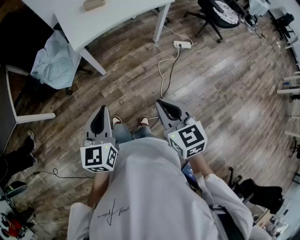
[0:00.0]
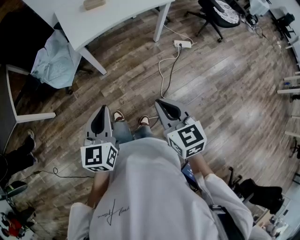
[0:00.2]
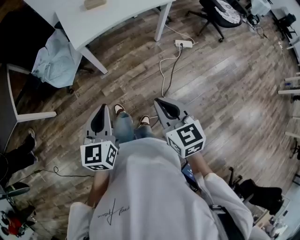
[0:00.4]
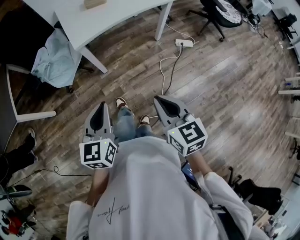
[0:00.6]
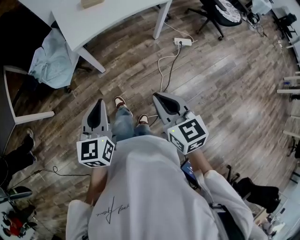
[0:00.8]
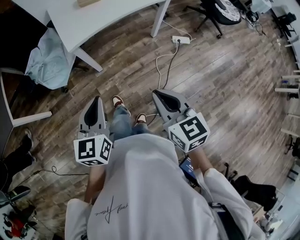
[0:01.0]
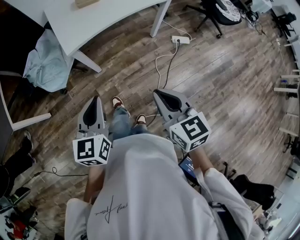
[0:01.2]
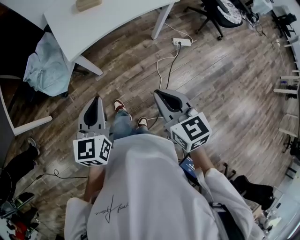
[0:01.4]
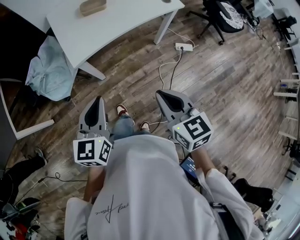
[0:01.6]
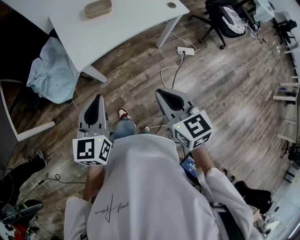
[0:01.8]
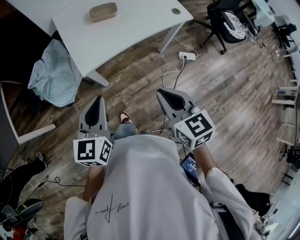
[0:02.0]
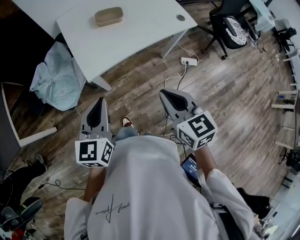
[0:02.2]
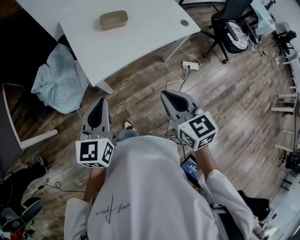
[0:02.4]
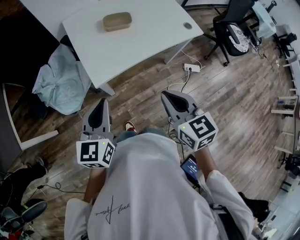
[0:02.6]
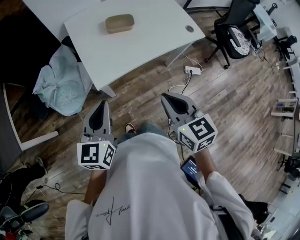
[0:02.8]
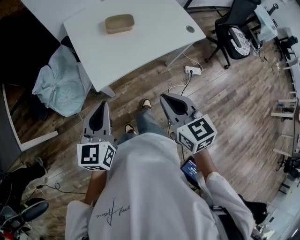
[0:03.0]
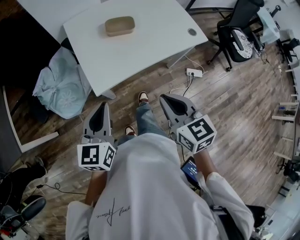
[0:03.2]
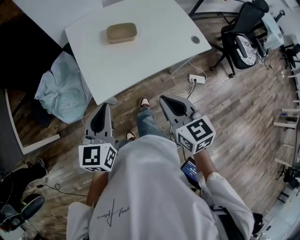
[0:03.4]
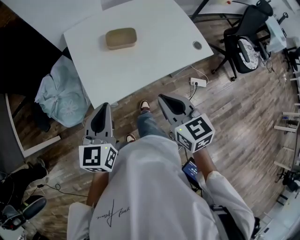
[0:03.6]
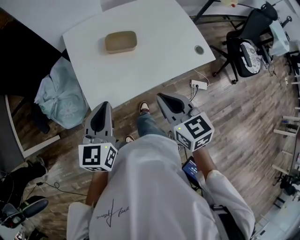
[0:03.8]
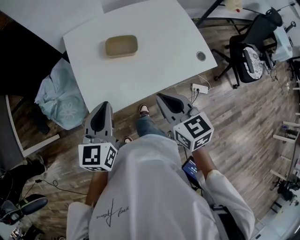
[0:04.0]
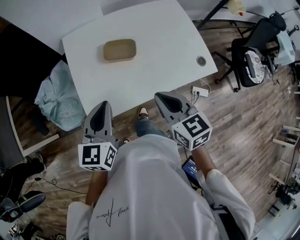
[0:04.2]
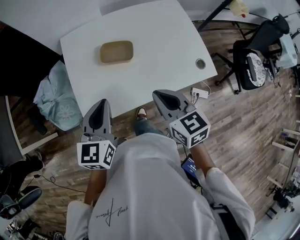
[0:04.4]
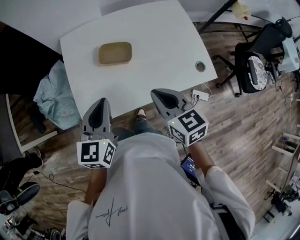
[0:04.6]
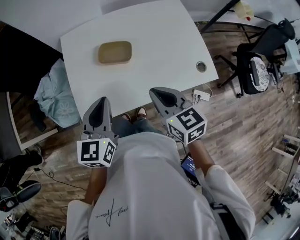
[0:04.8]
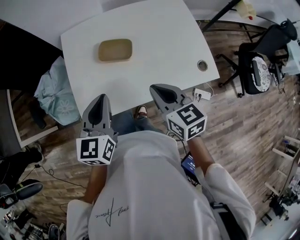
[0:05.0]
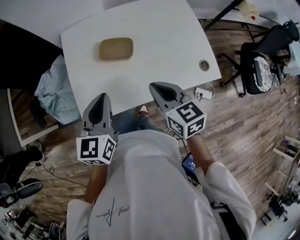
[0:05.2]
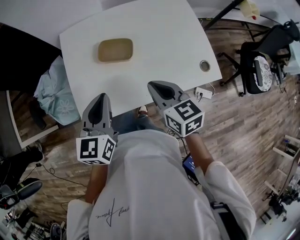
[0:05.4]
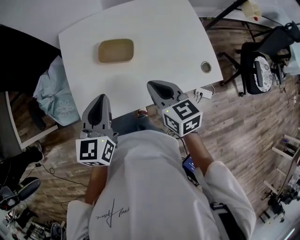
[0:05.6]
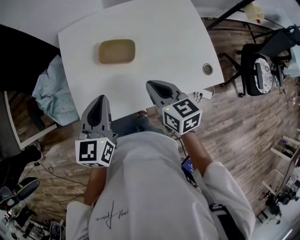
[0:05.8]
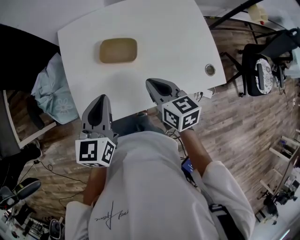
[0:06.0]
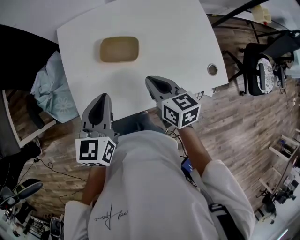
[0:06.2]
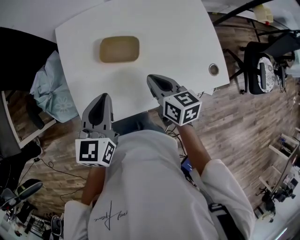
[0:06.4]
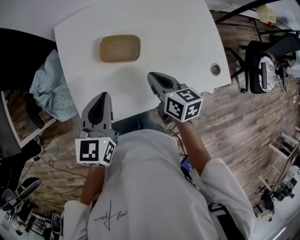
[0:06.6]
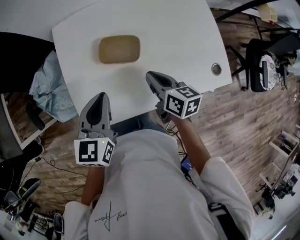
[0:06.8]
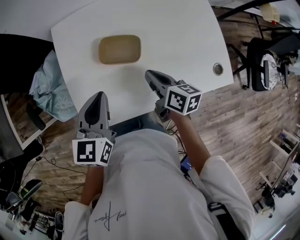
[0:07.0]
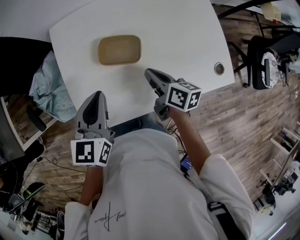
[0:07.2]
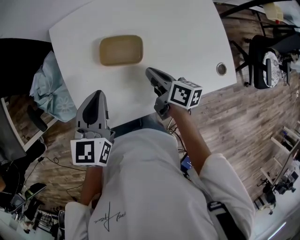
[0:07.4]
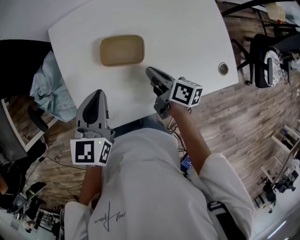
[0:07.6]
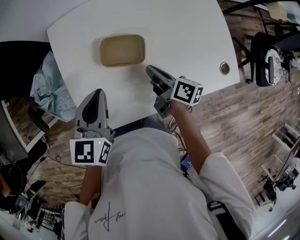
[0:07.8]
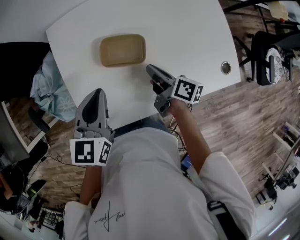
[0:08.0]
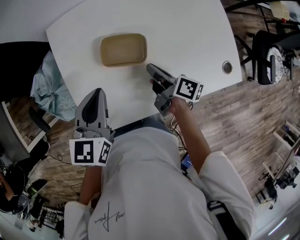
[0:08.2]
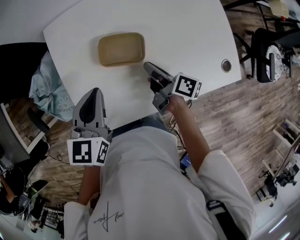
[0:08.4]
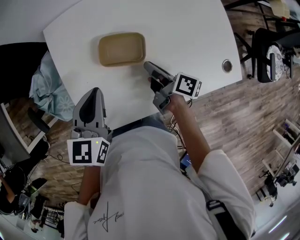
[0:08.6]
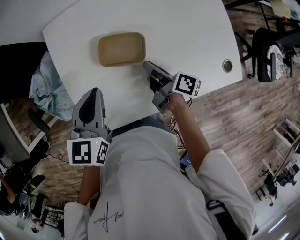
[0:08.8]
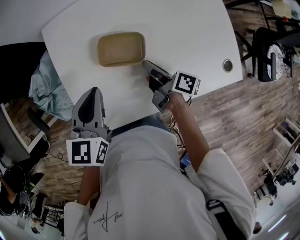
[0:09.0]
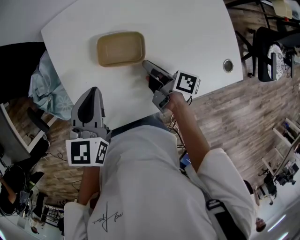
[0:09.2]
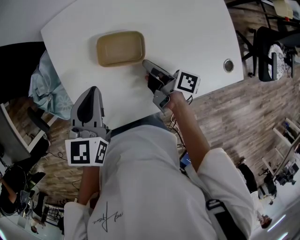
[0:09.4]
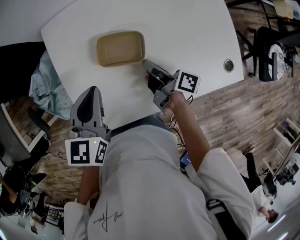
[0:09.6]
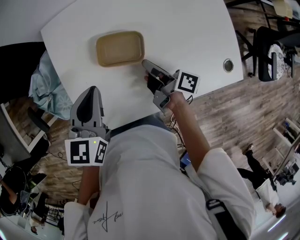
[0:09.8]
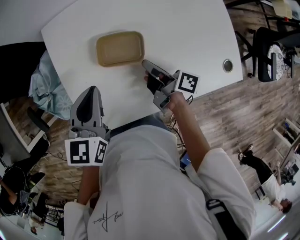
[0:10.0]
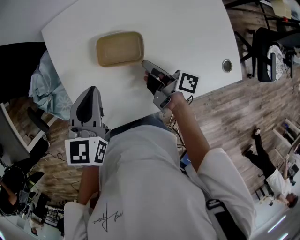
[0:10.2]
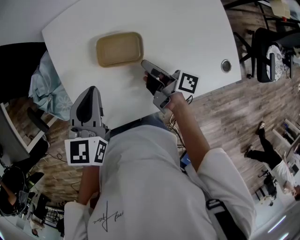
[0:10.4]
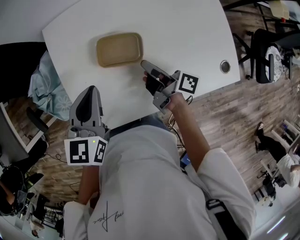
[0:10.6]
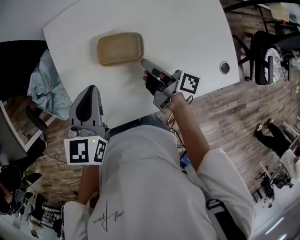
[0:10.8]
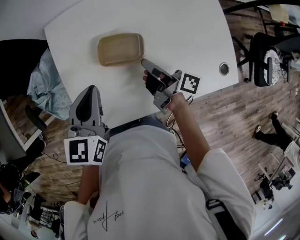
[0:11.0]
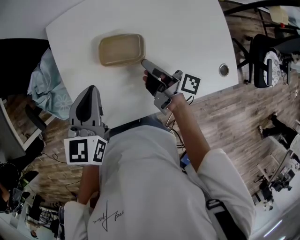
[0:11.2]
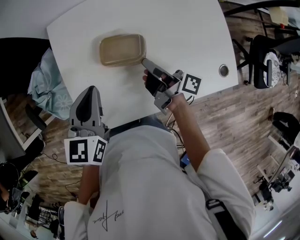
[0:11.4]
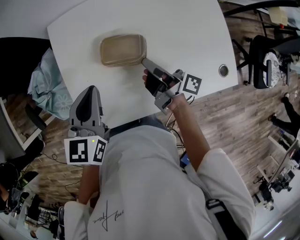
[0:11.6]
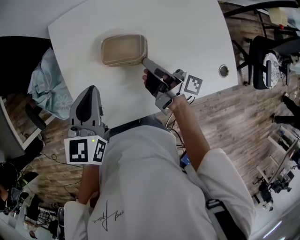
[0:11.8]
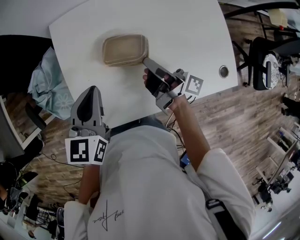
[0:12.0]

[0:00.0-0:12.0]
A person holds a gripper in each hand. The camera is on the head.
0:00.0 to 0:01.6: The two grippers go approximately 20 cm forward.
0:01.6 to 0:03.0: Both grippers travel together forward and to the left, approximately 15 cm.
0:03.0 to 0:04.4: The grippers both shift forward and to the right by about 25 cm.
0:04.4 to 0:06.0: The right gripper heads forward and downward, covering roughly 10 cm; the left gripper heads forward, covering some 5 cm.
0:06.0 to 0:07.6: The left gripper heads forward, covering roughly 5 cm. The right gripper moves downward and forward, approximately 10 cm, and rotates approximately 40 degrees.
0:07.6 to 0:09.0: The grippers move only a little.
0:09.0 to 0:10.4: The grippers move only a little.
0:10.4 to 0:12.0: The right gripper is displaced upward by some 5 cm.

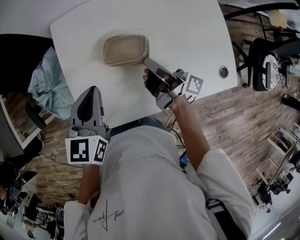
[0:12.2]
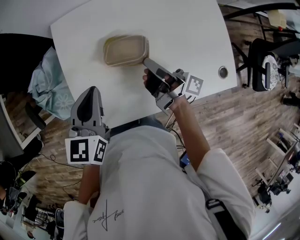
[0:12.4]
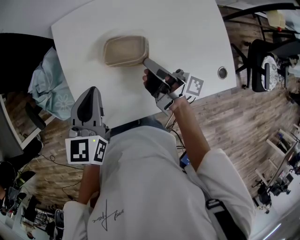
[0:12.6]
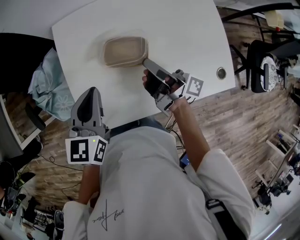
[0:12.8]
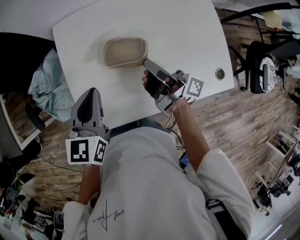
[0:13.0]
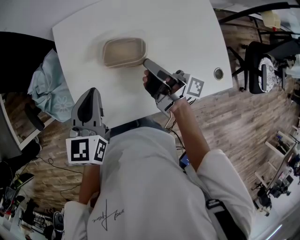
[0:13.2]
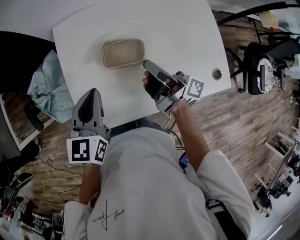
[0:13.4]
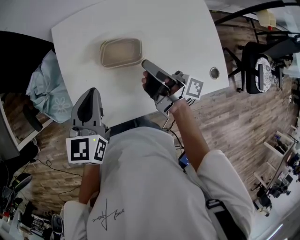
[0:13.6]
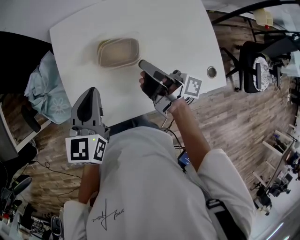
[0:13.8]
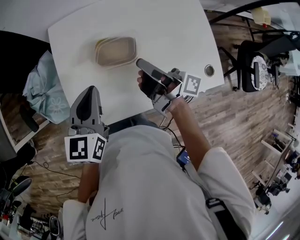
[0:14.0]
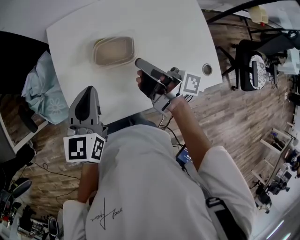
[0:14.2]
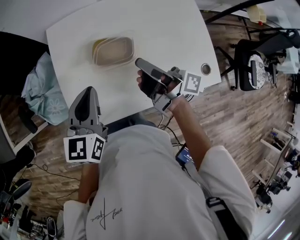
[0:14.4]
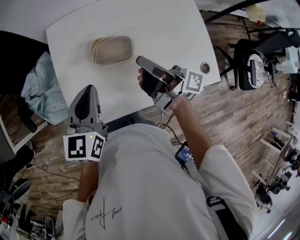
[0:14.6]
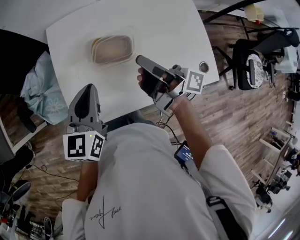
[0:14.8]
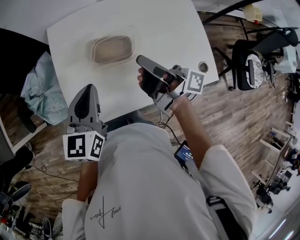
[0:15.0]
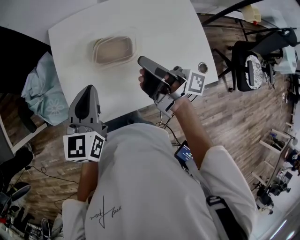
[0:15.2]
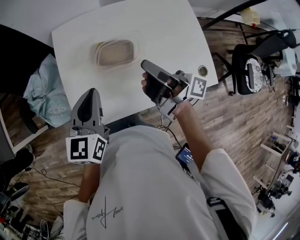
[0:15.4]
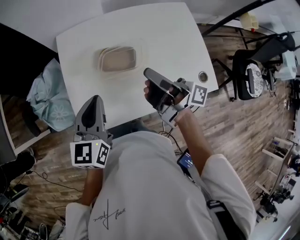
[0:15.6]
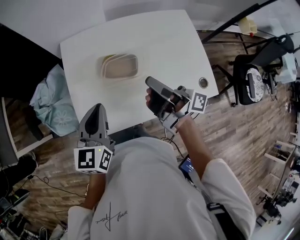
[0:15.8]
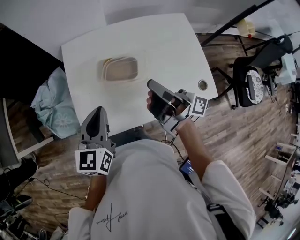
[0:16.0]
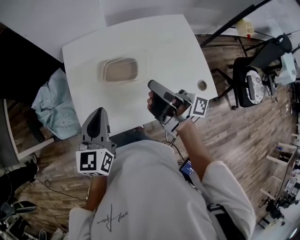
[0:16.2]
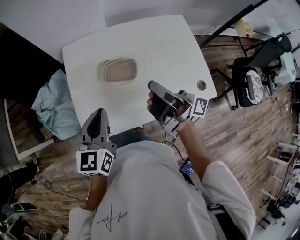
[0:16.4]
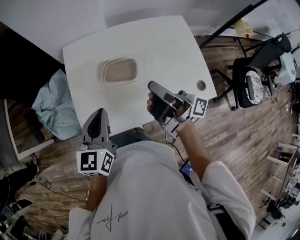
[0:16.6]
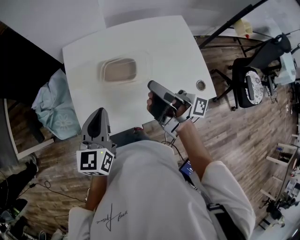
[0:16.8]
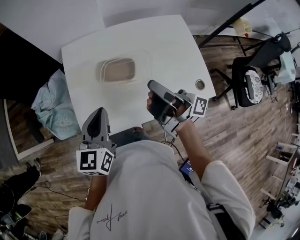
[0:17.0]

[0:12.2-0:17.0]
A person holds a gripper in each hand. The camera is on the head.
0:12.2 to 0:13.8: The right gripper moves upward, approximately 5 cm.
0:13.8 to 0:15.4: The right gripper heads upward, covering approximately 5 cm.
0:15.4 to 0:17.0: The right gripper changes place by about 5 cm.

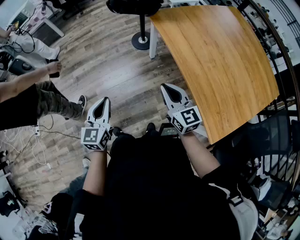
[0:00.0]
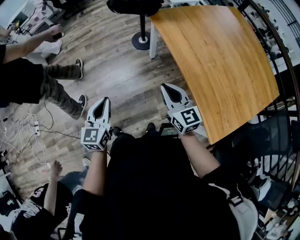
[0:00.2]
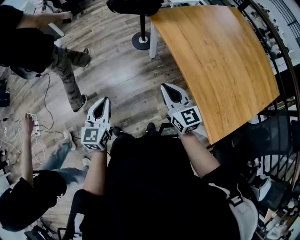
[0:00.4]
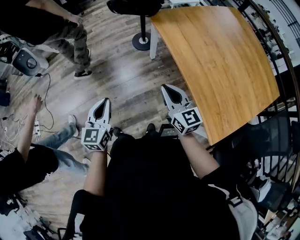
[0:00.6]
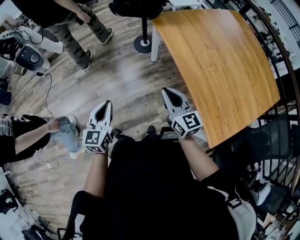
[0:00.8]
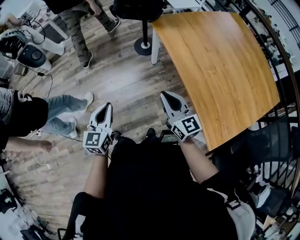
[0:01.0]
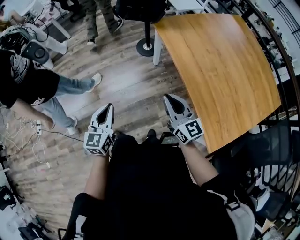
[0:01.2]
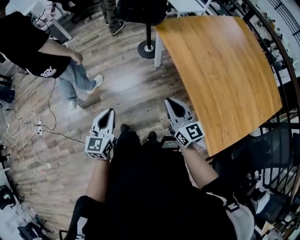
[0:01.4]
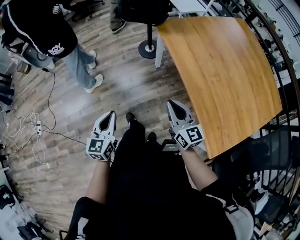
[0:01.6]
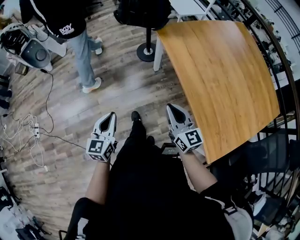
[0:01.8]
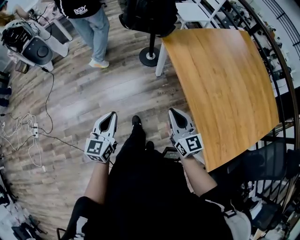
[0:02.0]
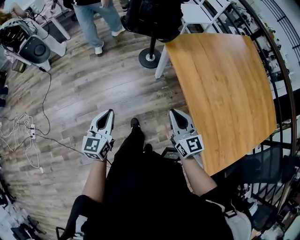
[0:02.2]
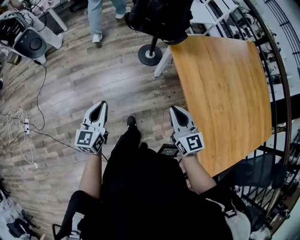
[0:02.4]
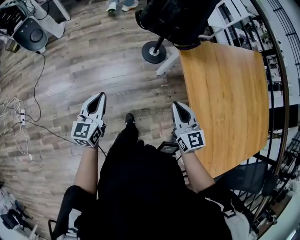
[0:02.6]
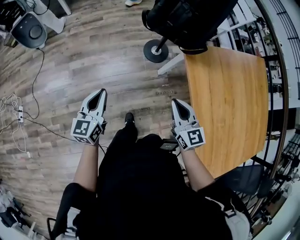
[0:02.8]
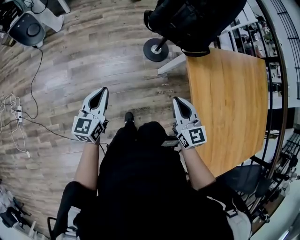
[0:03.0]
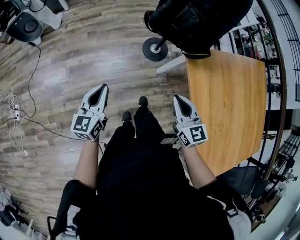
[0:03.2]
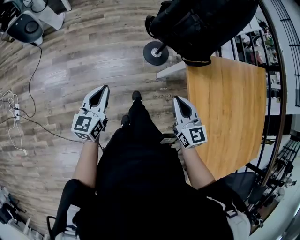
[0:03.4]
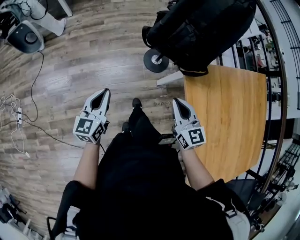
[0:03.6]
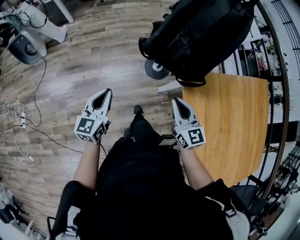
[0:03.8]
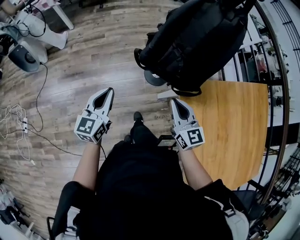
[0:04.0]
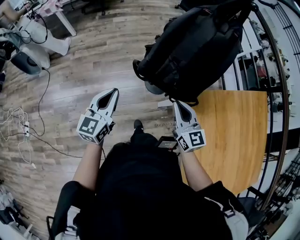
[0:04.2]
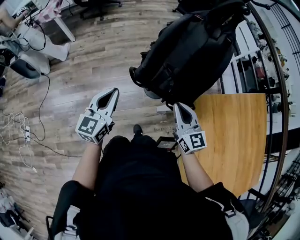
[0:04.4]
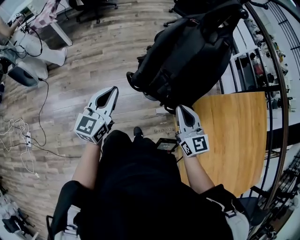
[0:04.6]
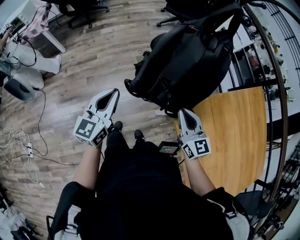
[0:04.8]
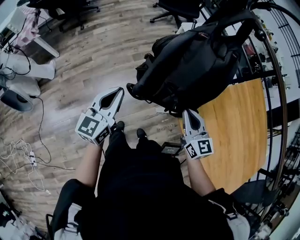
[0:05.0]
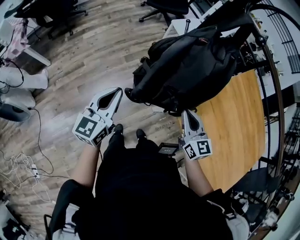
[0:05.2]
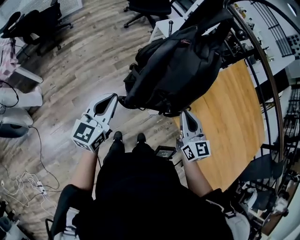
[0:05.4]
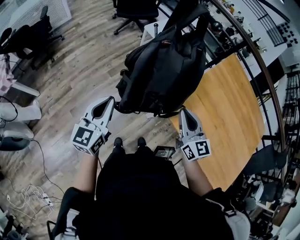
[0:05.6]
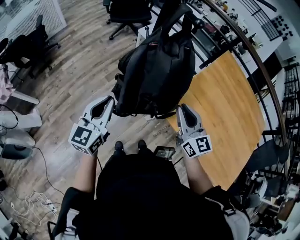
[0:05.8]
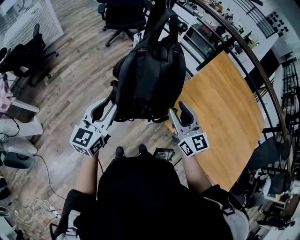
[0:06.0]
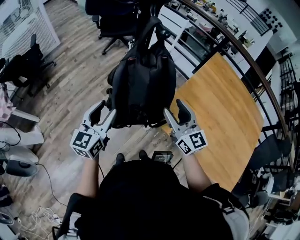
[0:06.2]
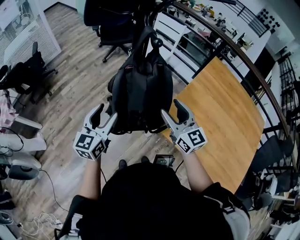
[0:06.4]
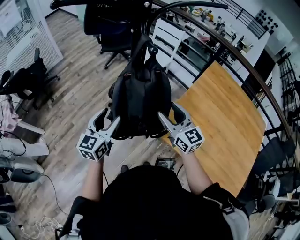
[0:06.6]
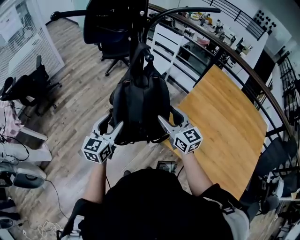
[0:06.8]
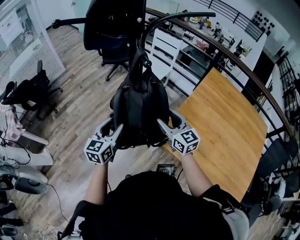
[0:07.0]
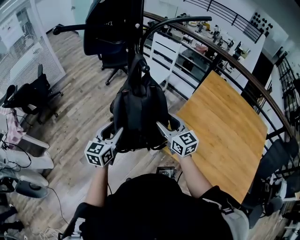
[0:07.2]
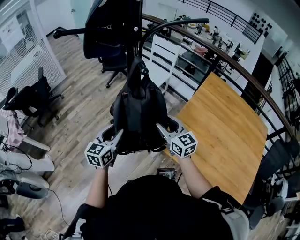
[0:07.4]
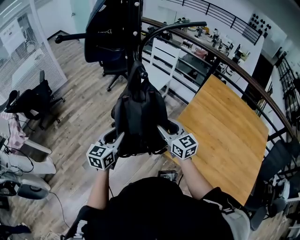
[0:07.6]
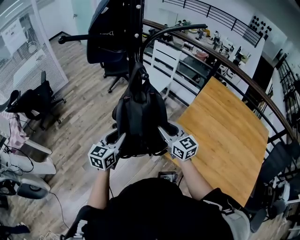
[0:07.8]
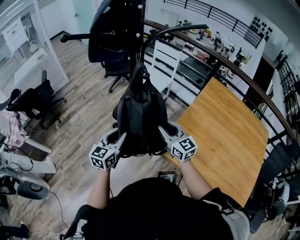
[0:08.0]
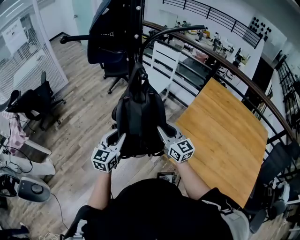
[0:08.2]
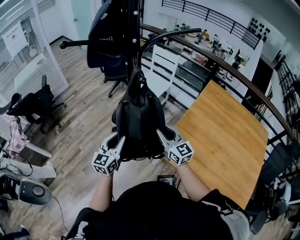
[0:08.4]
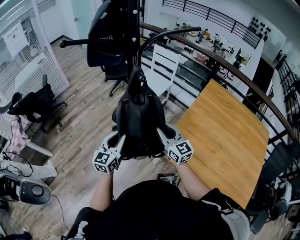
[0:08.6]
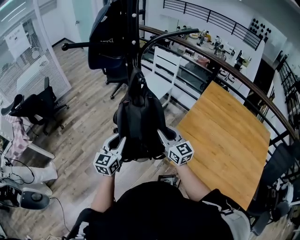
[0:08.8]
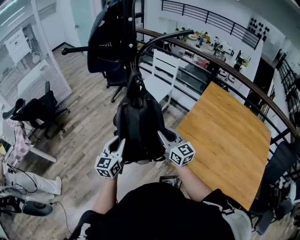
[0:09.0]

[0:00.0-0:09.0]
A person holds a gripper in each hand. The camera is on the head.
0:00.0 to 0:01.6: The grippers stay close to where they were, moving slightly.
0:01.6 to 0:03.0: The grippers both shift forward by some 30 cm.
0:03.0 to 0:04.4: The right gripper shifts about 20 cm forward; the left gripper heads forward and to the right, covering roughly 25 cm.
0:04.4 to 0:06.0: The left gripper moves about 15 cm, changes its angle by approximately 40 degrees, and opens up. Meanwhile the right gripper shifts some 10 cm upward, swivels about 30 degrees, and opens its fingers.
0:06.0 to 0:07.6: The right gripper goes about 5 cm forward. The left gripper ends up about 5 cm from where it was, and opens and closes again.
0:07.6 to 0:09.0: There are only small adjustments of the grippers.
